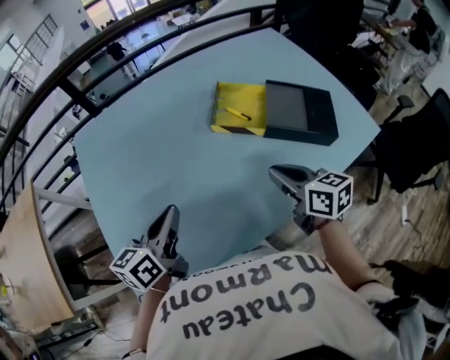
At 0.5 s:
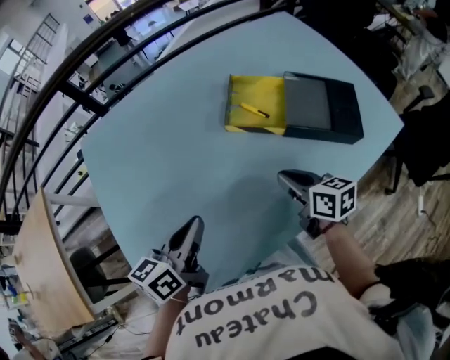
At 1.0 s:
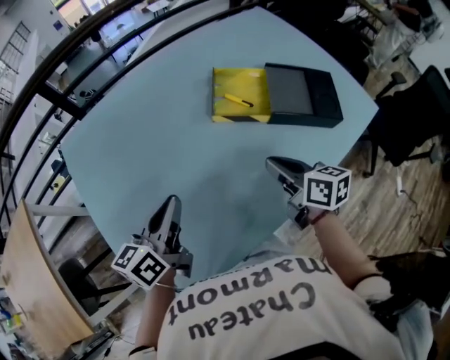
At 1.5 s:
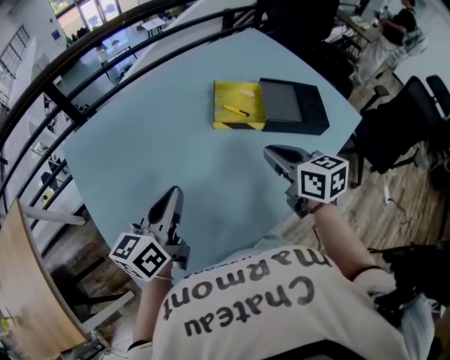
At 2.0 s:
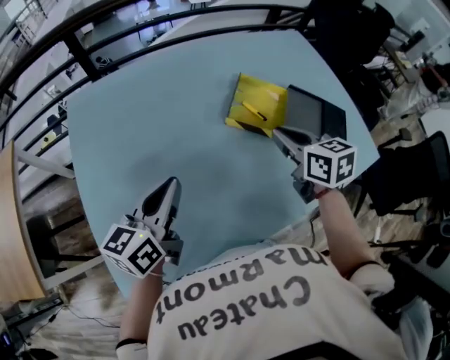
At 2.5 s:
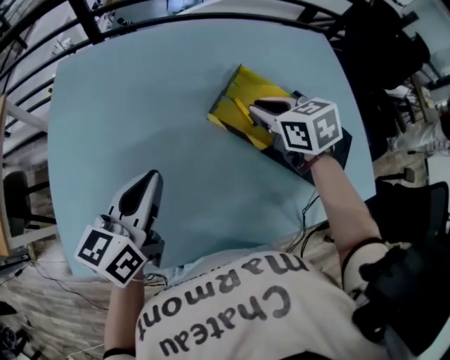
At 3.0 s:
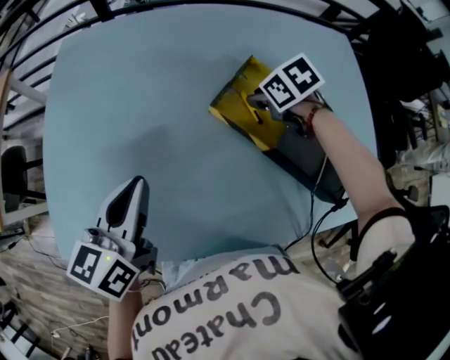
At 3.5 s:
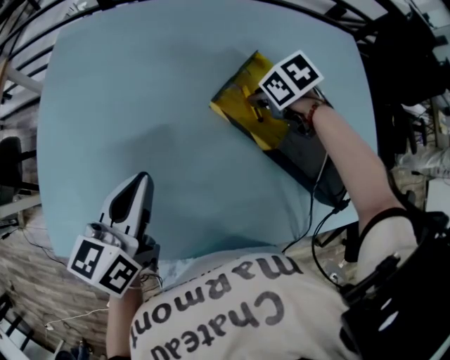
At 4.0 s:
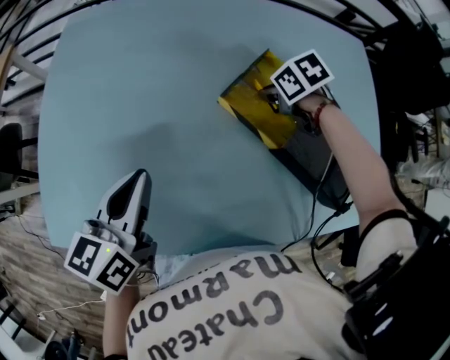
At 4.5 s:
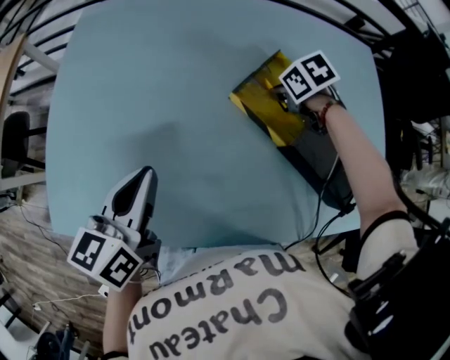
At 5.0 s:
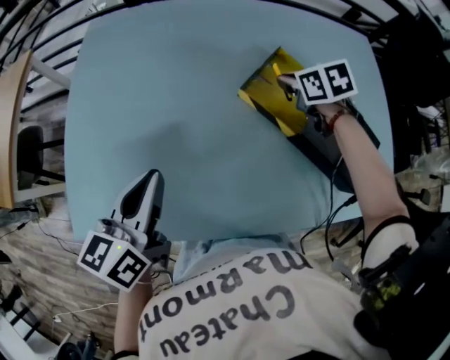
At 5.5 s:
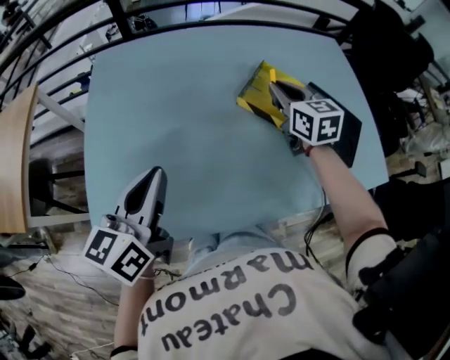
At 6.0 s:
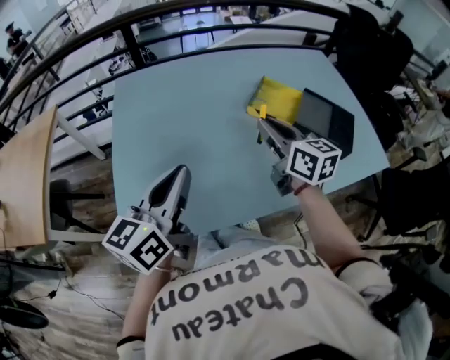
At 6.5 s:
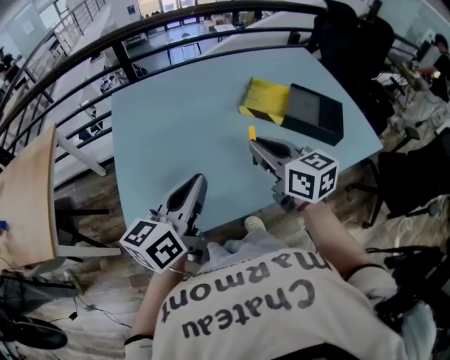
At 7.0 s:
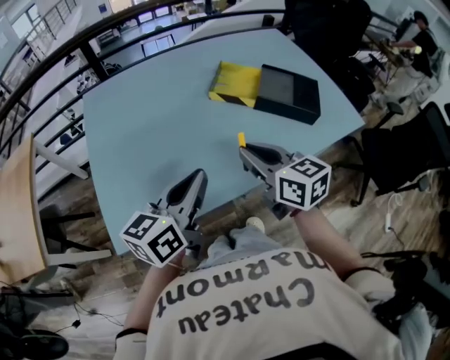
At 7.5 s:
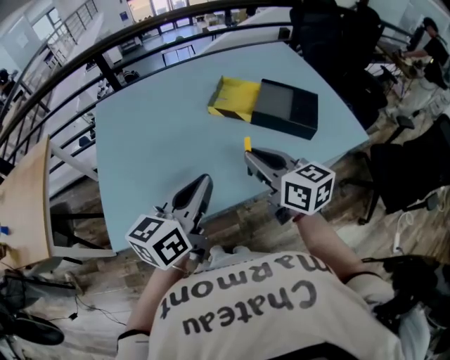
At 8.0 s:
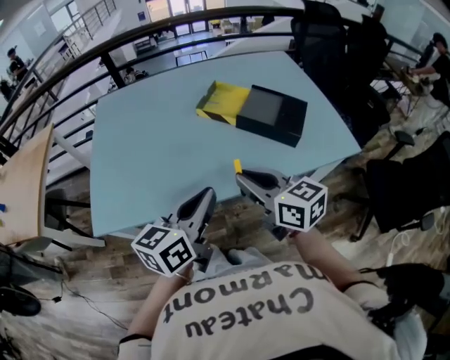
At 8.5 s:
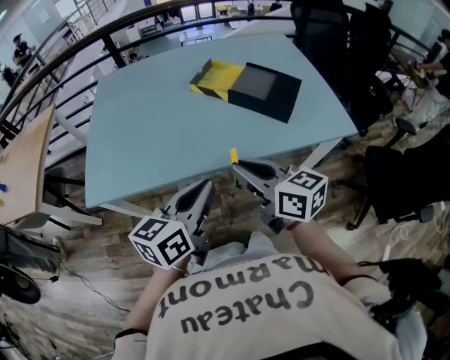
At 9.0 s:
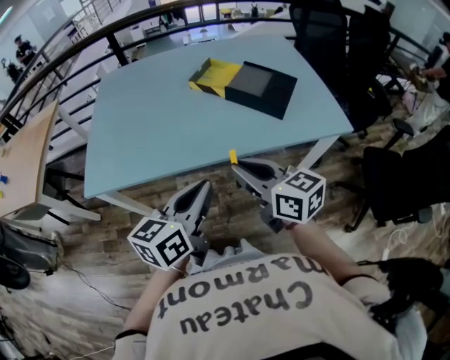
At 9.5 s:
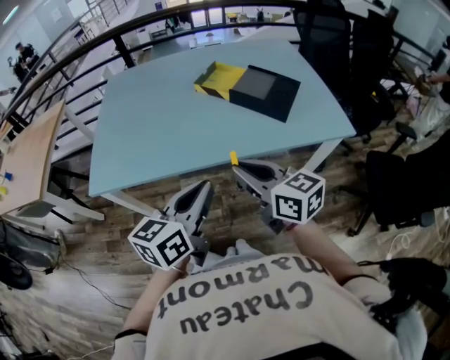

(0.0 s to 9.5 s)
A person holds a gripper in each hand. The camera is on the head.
0.0 s - 2.0 s: The left gripper shifts by roughly 5 cm; the right gripper moves forward, roughly 10 cm.
2.0 s - 4.0 s: The left gripper changes place by about 10 cm, and rotates roughly 30 degrees, while the right gripper travels downward by roughly 15 cm, and tilts its fingers about 40 degrees downward.
4.0 s - 5.5 s: The left gripper shifts by some 15 cm; the right gripper shifts some 20 cm upward, and tilts its fingers about 50 degrees upward.
5.5 s - 7.5 s: The right gripper shifts approximately 30 cm backward, and changes its angle by some 20 degrees; the left gripper travels backward, to the right and upward by approximately 20 cm, and changes its angle by roughly 20 degrees.
7.5 s - 9.5 s: The two grippers go about 20 cm backward and to the right.

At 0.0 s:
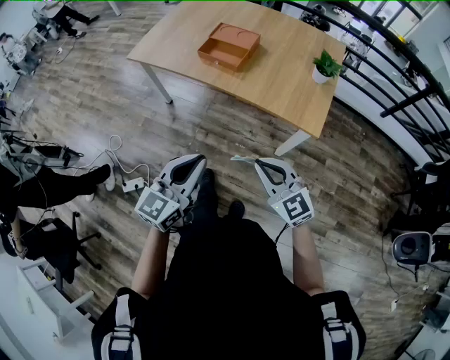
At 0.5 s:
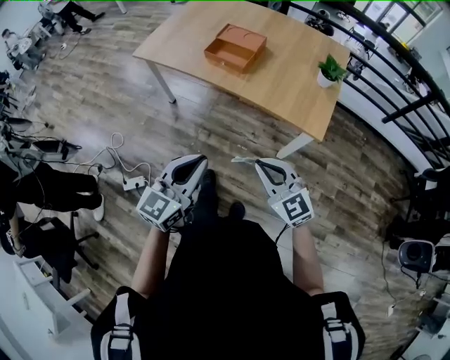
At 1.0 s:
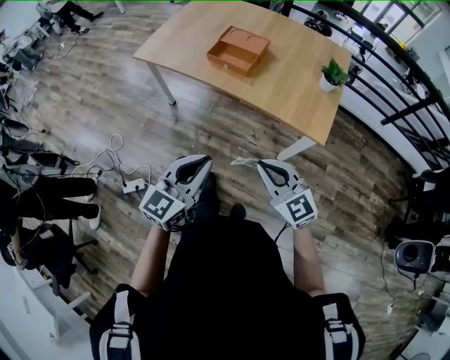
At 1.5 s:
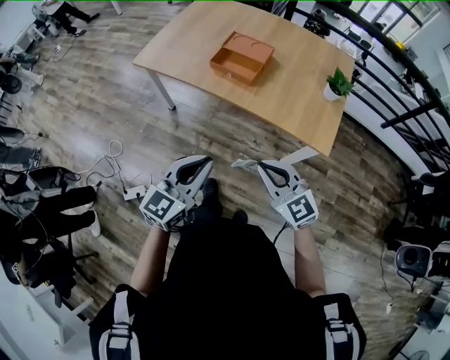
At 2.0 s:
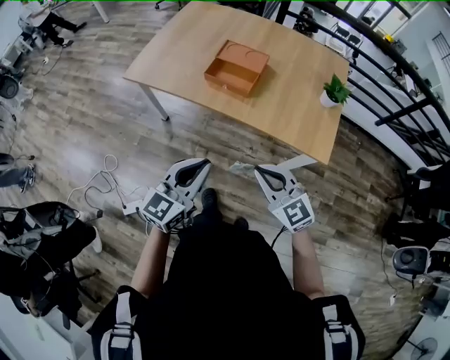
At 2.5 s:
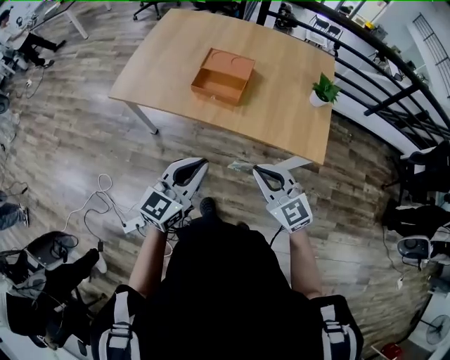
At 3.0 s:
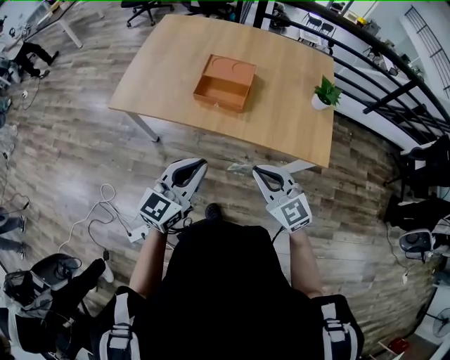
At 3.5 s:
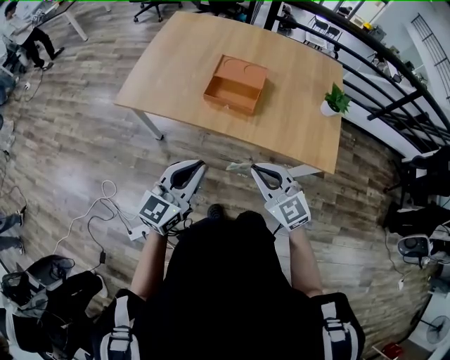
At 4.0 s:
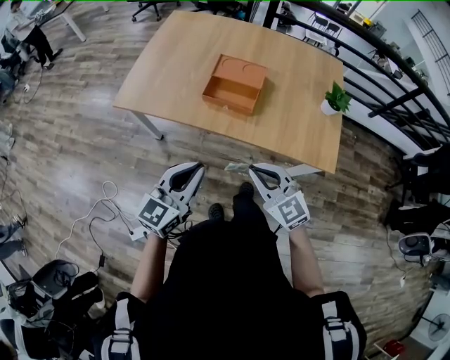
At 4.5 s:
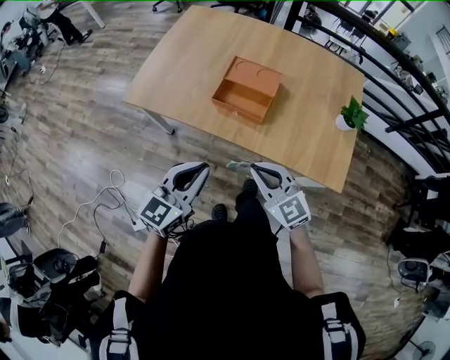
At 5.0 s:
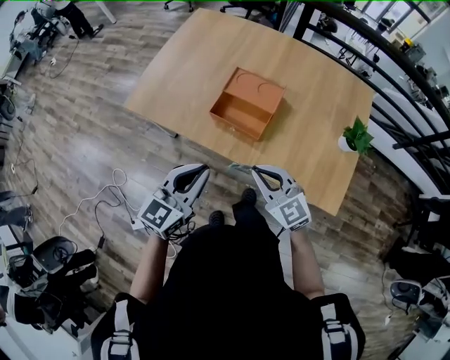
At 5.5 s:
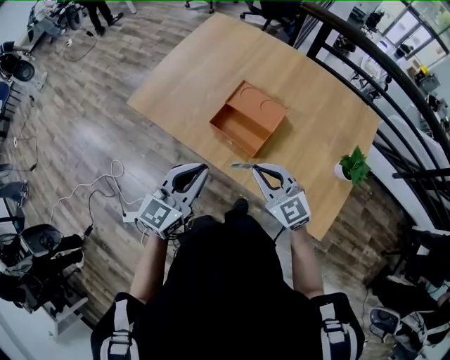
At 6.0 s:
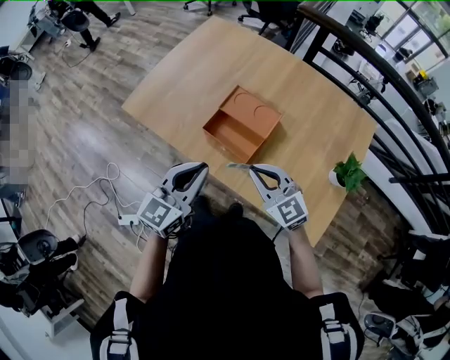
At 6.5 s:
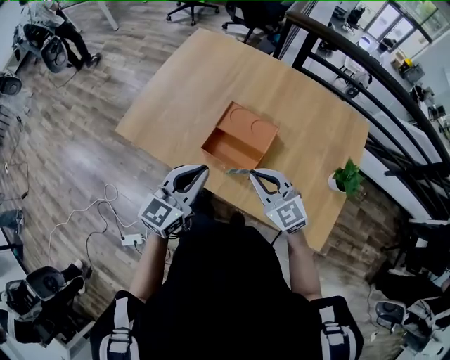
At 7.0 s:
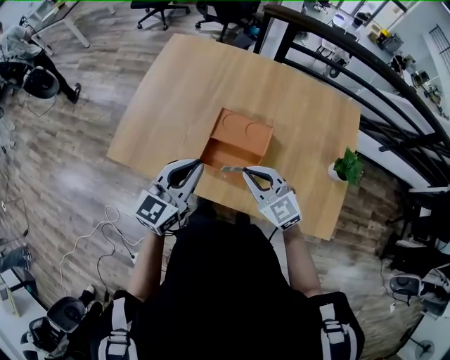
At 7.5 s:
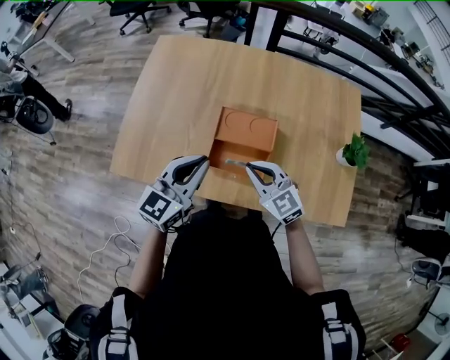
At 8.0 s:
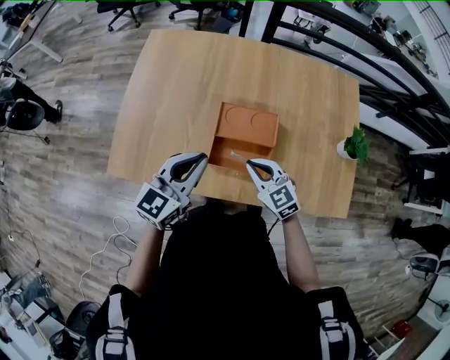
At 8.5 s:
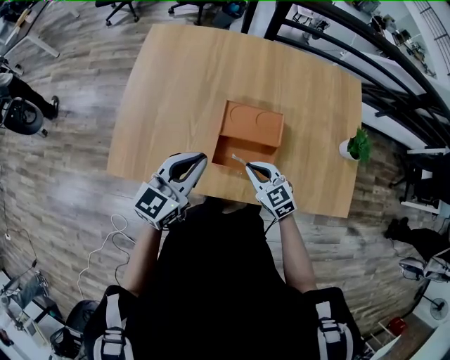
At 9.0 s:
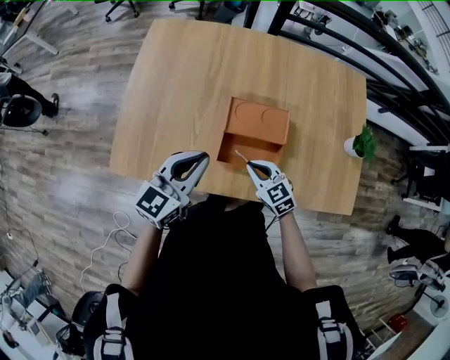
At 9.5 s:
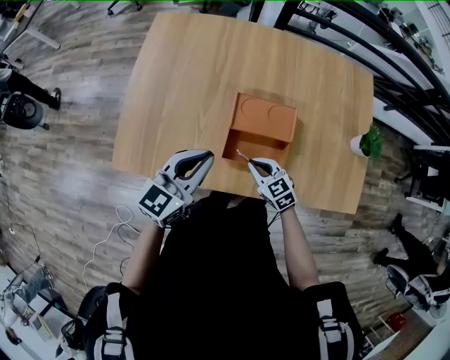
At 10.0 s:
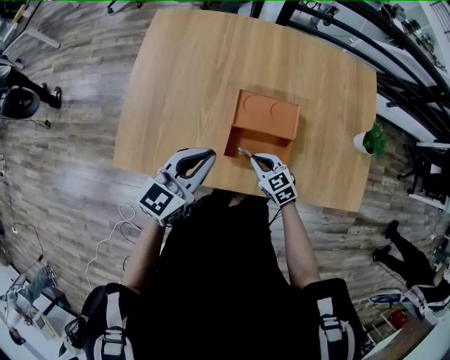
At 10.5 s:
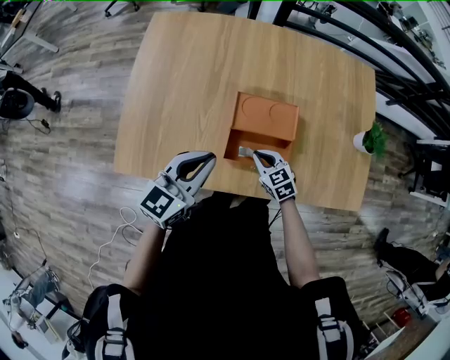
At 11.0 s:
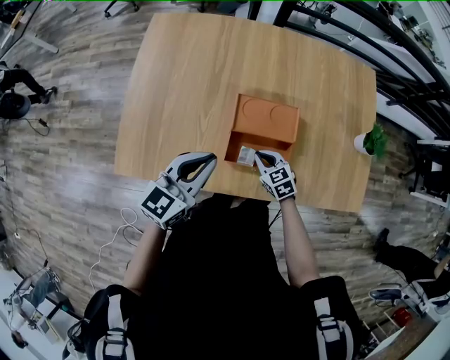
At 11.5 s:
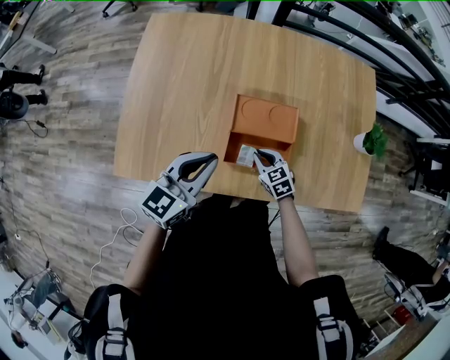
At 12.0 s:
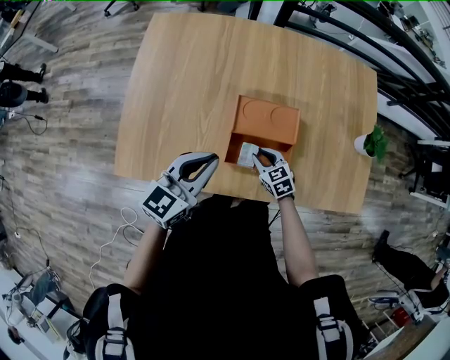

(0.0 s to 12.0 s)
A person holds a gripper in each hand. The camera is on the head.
0.0 s - 2.0 s: The two grippers go roughly 15 cm forward and to the left.
2.0 s - 4.0 s: Both grippers move forward and to the left, approximately 15 cm.
4.0 s - 6.0 s: Both grippers move forward and to the right, roughly 25 cm.
6.0 s - 8.0 s: The left gripper shifts by roughly 20 cm, and rotates some 30 degrees, while the right gripper changes place by some 20 cm, and turns by roughly 30 degrees.
8.0 s - 10.0 s: The left gripper shifts by roughly 5 cm, while the right gripper travels downward by roughly 15 cm.
10.0 s - 12.0 s: The right gripper moves about 5 cm.

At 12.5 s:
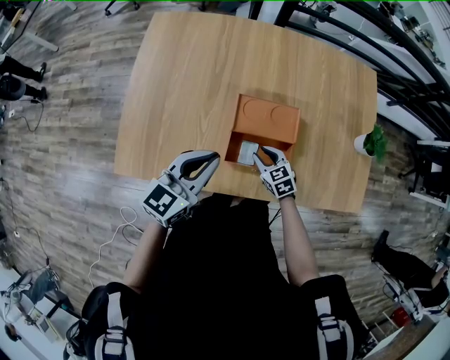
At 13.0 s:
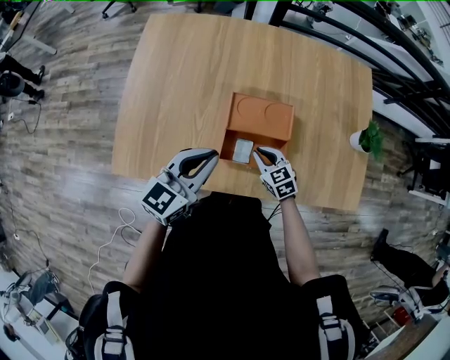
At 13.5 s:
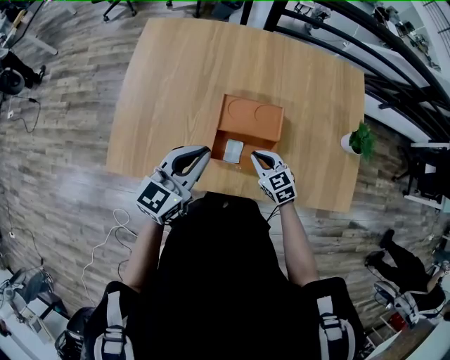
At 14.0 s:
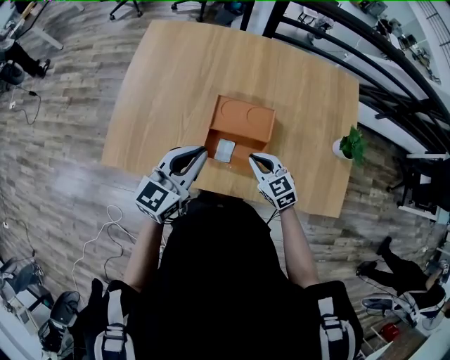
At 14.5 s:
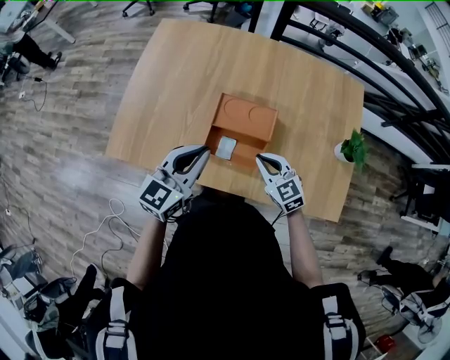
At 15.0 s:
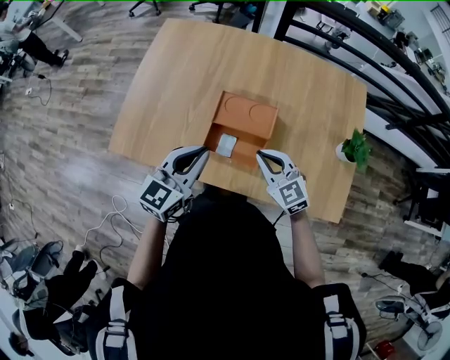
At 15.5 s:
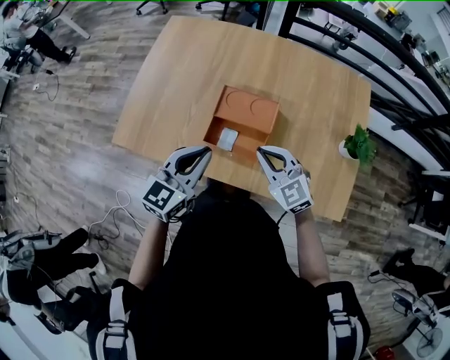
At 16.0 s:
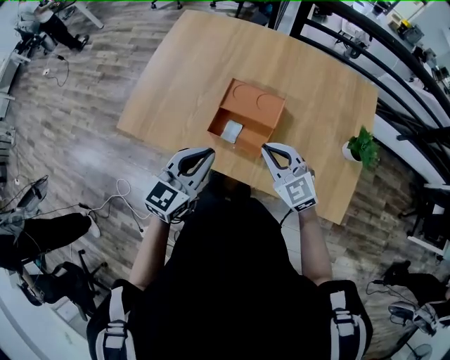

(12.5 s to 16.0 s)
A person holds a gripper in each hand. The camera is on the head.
12.5 s - 14.5 s: The right gripper travels upward and to the right by roughly 15 cm, rotates approximately 20 degrees, and closes, while the left gripper goes roughly 5 cm to the right.
14.5 s - 16.0 s: The left gripper shifts roughly 10 cm backward, while the right gripper moves upward, about 10 cm.

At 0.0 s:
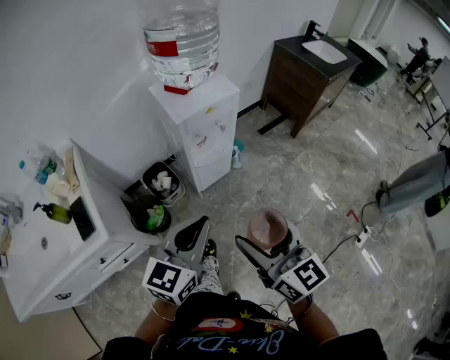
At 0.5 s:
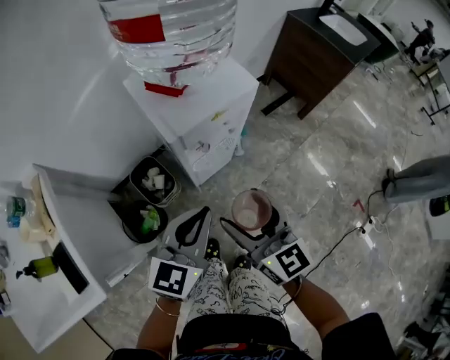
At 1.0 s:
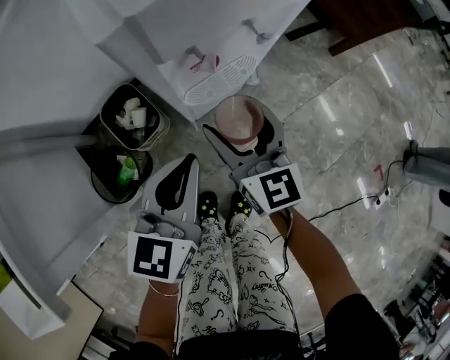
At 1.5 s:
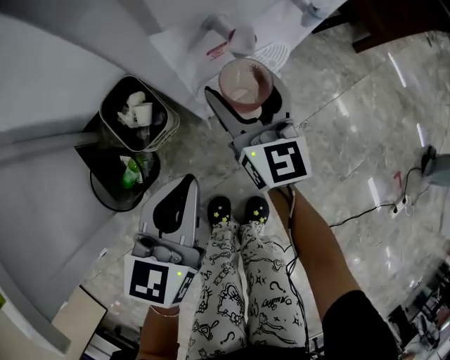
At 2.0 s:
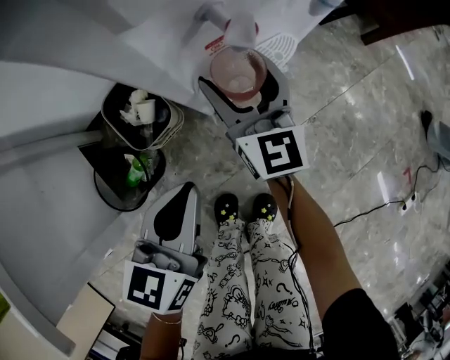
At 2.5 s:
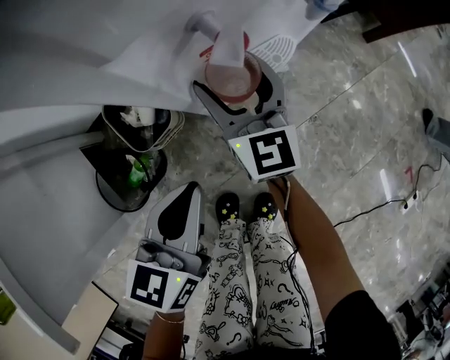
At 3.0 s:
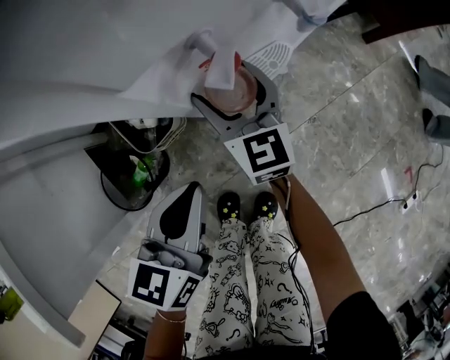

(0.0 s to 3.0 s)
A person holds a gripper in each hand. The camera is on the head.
0.0 s - 1.5 s: The grippers both shift downward and forward by about 50 cm.
1.5 s - 3.0 s: The grippers move only a little.
